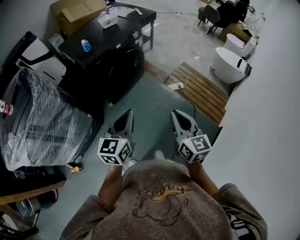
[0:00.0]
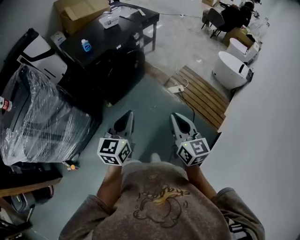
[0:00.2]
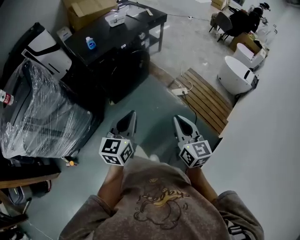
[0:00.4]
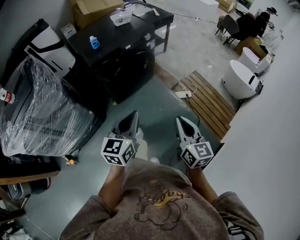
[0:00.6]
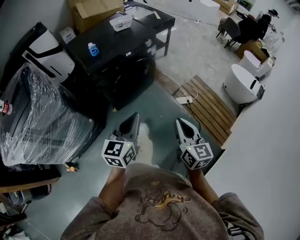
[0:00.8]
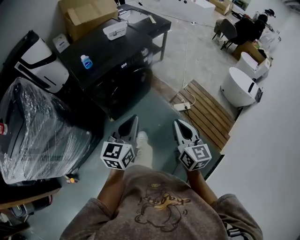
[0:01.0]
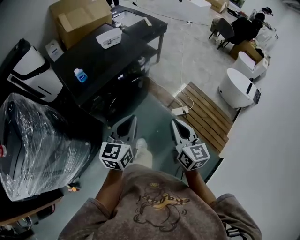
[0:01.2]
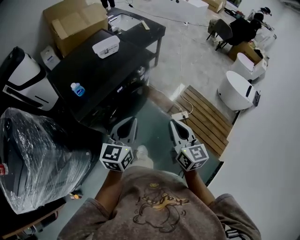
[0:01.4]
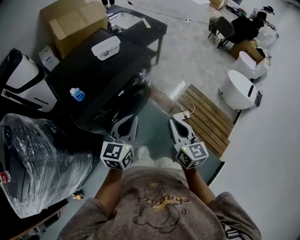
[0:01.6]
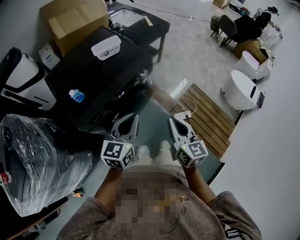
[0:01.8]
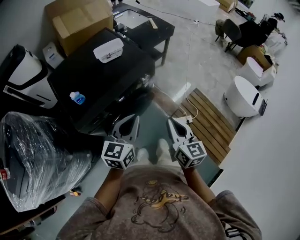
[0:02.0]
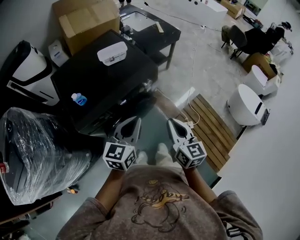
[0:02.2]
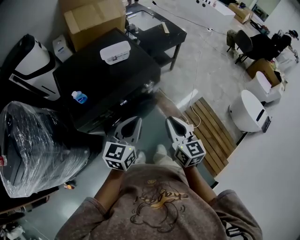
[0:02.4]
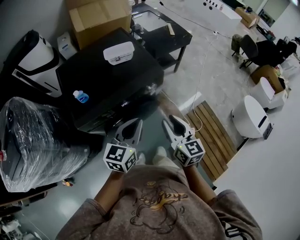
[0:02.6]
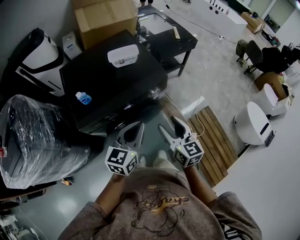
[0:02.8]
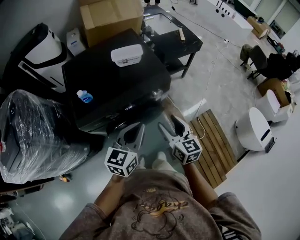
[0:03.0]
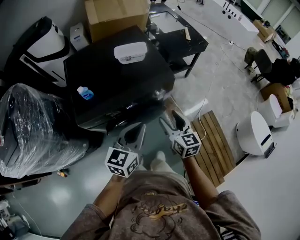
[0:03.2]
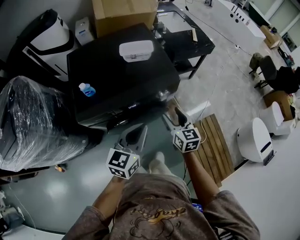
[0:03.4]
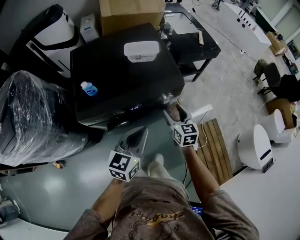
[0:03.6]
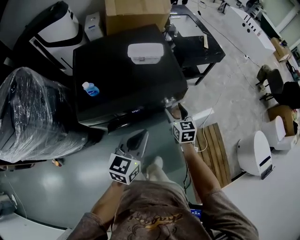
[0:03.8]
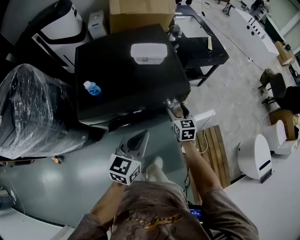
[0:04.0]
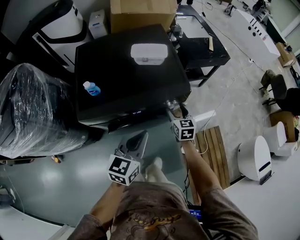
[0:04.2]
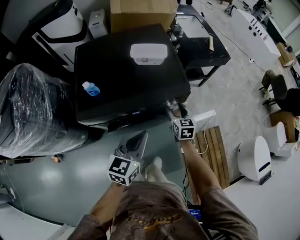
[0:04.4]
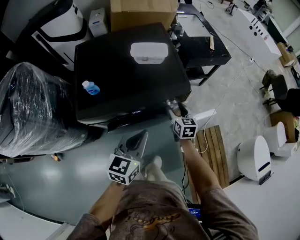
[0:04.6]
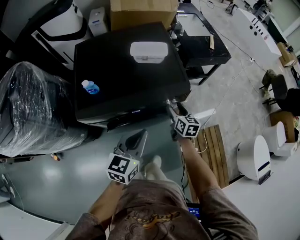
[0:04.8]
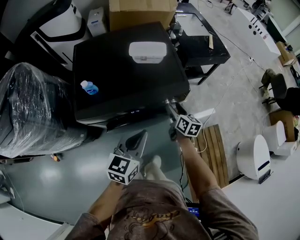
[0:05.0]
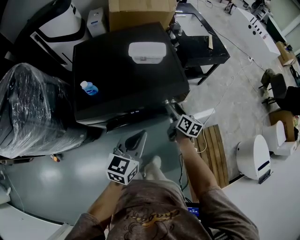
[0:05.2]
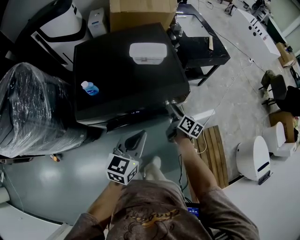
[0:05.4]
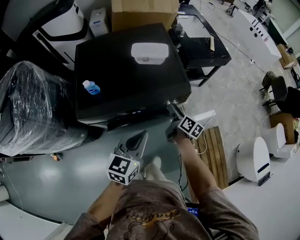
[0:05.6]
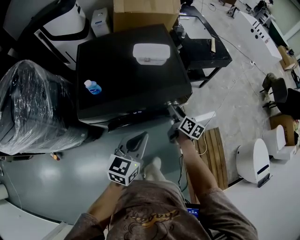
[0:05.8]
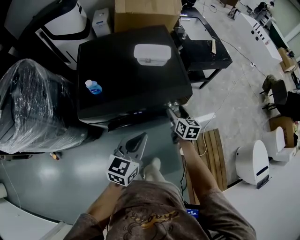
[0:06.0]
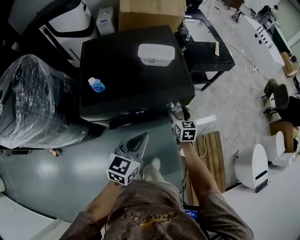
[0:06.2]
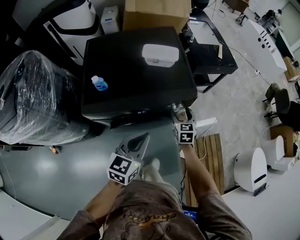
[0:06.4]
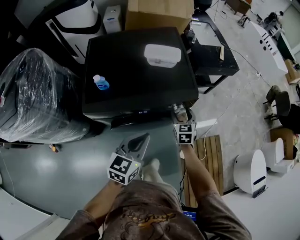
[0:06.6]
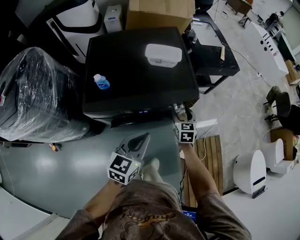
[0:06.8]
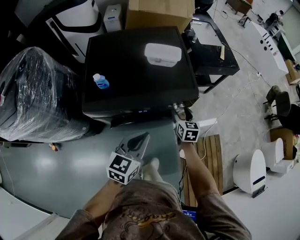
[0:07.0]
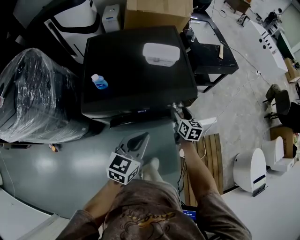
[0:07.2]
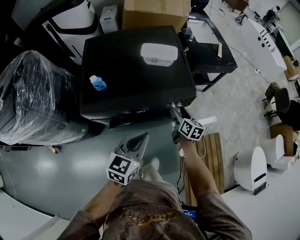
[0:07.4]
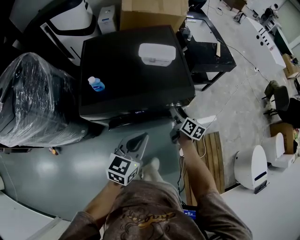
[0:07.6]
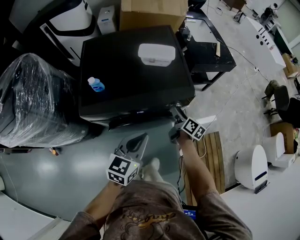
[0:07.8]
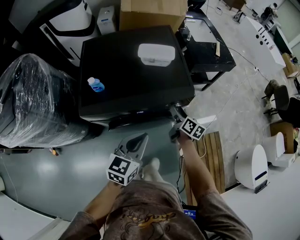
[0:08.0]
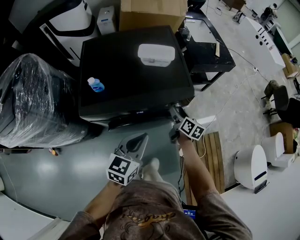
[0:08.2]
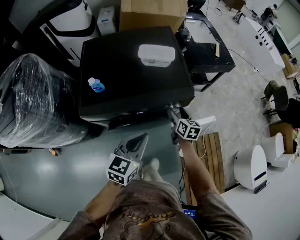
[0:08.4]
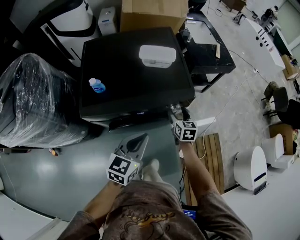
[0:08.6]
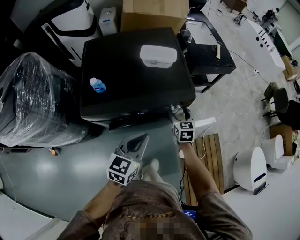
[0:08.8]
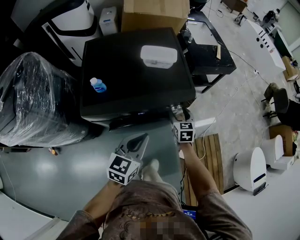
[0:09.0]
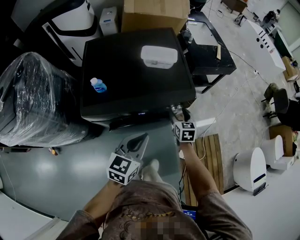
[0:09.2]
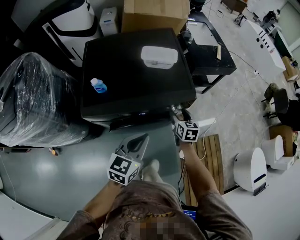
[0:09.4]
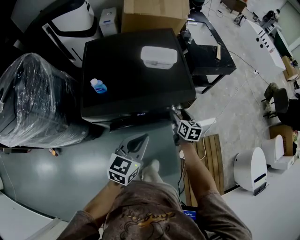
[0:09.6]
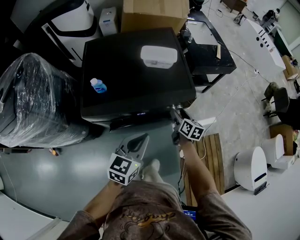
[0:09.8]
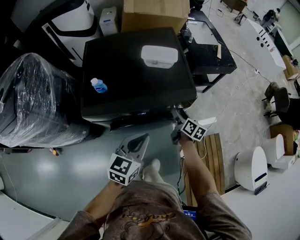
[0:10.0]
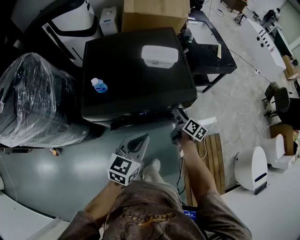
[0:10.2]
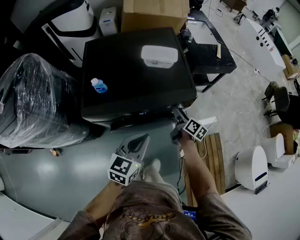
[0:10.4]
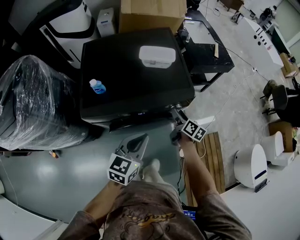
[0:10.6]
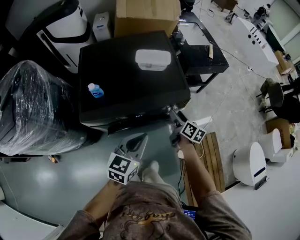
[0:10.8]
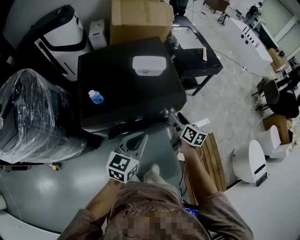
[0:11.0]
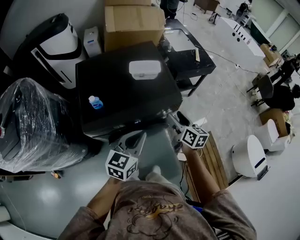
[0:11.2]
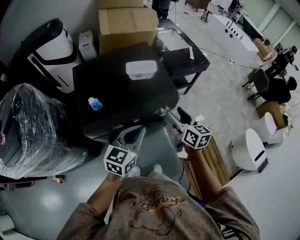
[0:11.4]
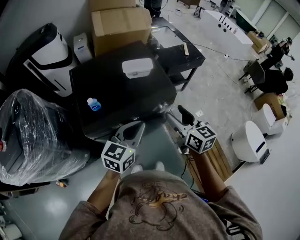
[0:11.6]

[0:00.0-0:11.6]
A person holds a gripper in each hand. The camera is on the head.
0:00.0 to 0:01.4: The two grippers go some 35 cm forward.
0:01.4 to 0:02.8: Both grippers move forward, approximately 15 cm. The right gripper swivels approximately 20 degrees, and opens its fingers.
0:02.8 to 0:04.4: The left gripper heads downward, covering about 5 cm. Meanwhile the right gripper is displaced forward and downward by some 25 cm, and changes its angle by roughly 20 degrees.
0:04.4 to 0:05.8: The right gripper changes its angle by approximately 40 degrees.
0:05.8 to 0:07.2: The right gripper turns by approximately 30 degrees.
0:07.2 to 0:08.8: The right gripper rotates roughly 20 degrees.
0:08.8 to 0:10.2: The right gripper rotates around the line of its fingers by some 50 degrees, clockwise from behind.
0:10.2 to 0:11.6: The left gripper is displaced upward by roughly 10 cm, while the right gripper is displaced upward and backward by approximately 30 cm, and turns by some 40 degrees.

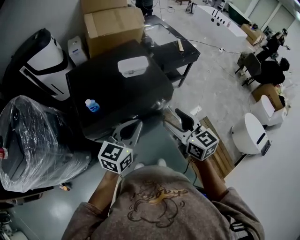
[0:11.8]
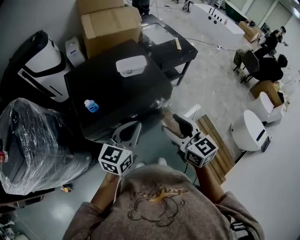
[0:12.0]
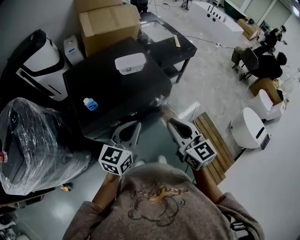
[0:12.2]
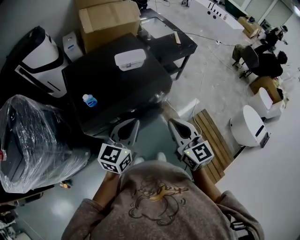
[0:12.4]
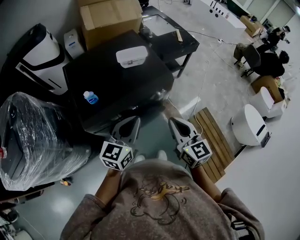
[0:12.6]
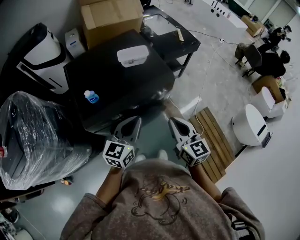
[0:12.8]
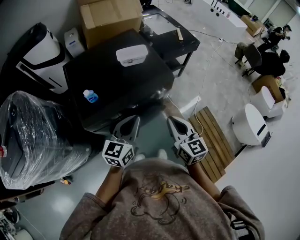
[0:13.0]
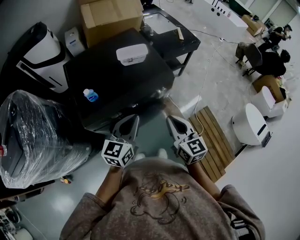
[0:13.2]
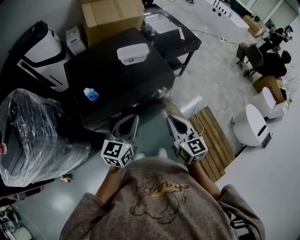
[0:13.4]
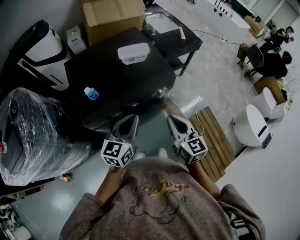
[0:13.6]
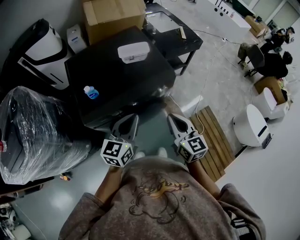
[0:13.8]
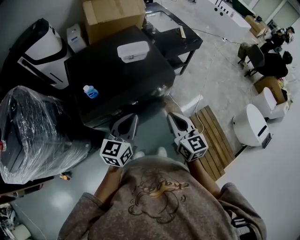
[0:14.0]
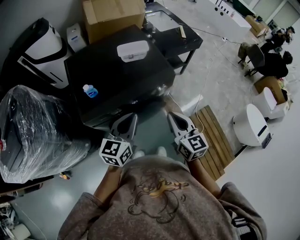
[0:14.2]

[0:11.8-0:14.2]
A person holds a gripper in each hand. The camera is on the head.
0:11.8 to 0:13.0: The right gripper travels downward by approximately 5 cm, and closes its fingers, while the left gripper ends up roughly 5 cm from where it was.
0:13.0 to 0:14.2: The two grippers keep their place.

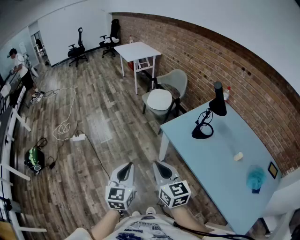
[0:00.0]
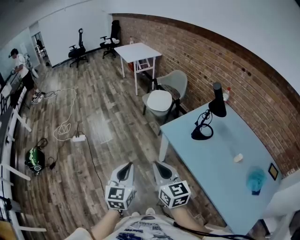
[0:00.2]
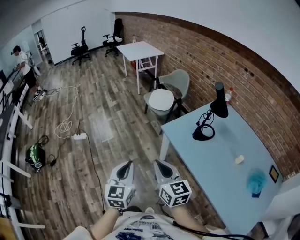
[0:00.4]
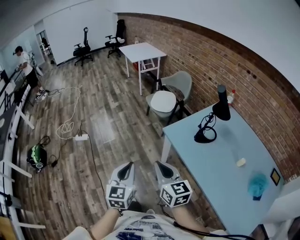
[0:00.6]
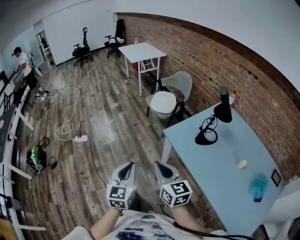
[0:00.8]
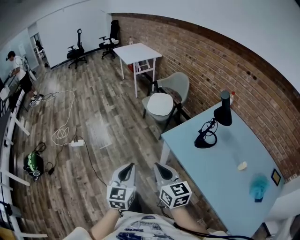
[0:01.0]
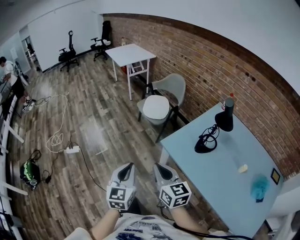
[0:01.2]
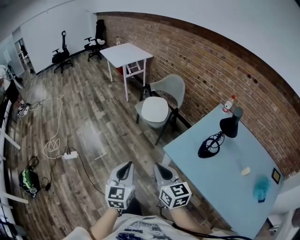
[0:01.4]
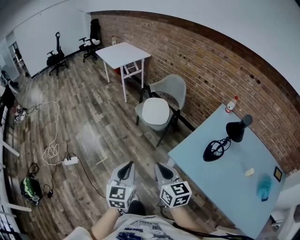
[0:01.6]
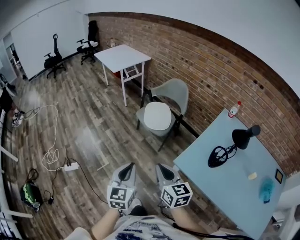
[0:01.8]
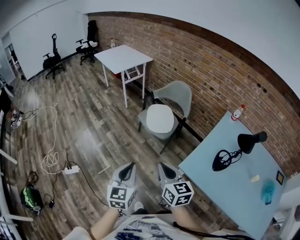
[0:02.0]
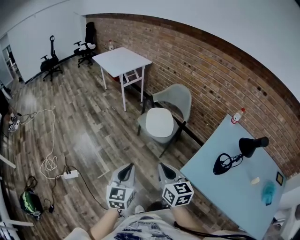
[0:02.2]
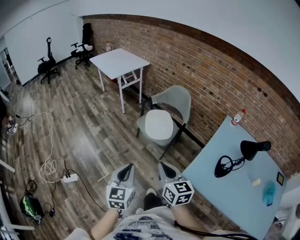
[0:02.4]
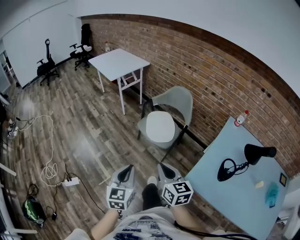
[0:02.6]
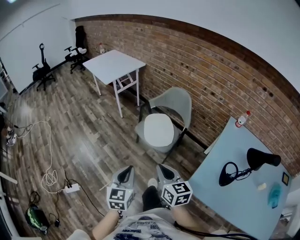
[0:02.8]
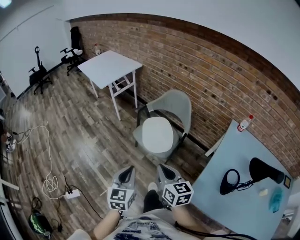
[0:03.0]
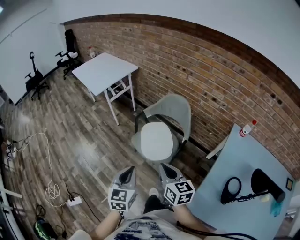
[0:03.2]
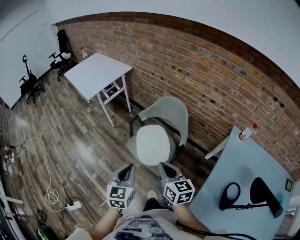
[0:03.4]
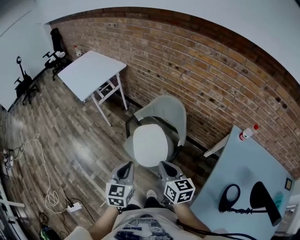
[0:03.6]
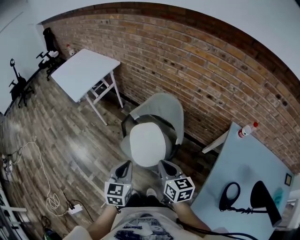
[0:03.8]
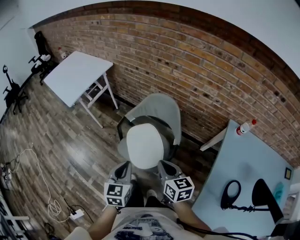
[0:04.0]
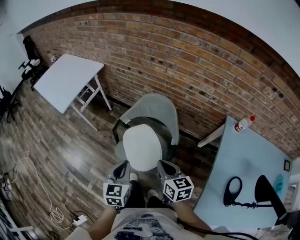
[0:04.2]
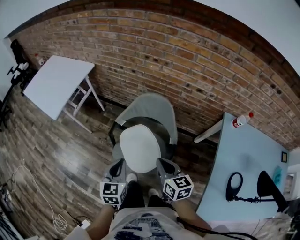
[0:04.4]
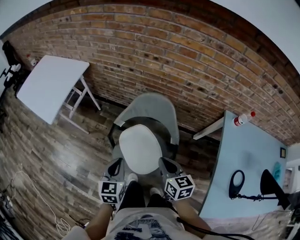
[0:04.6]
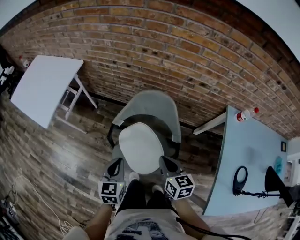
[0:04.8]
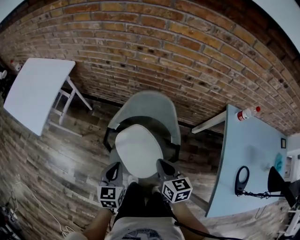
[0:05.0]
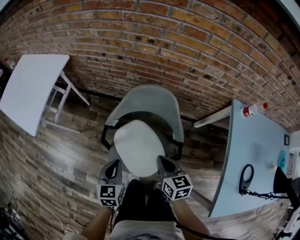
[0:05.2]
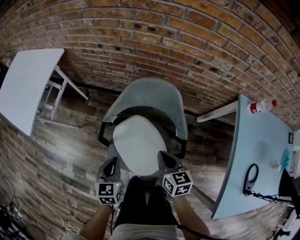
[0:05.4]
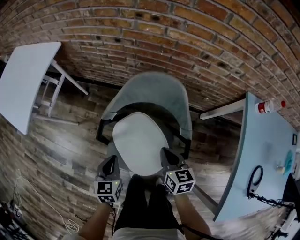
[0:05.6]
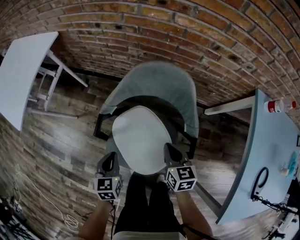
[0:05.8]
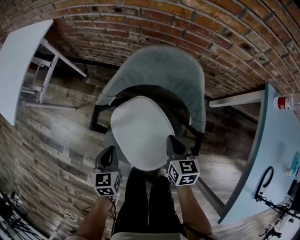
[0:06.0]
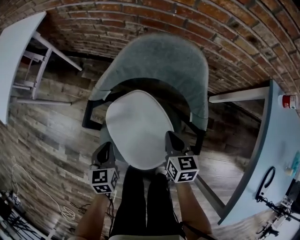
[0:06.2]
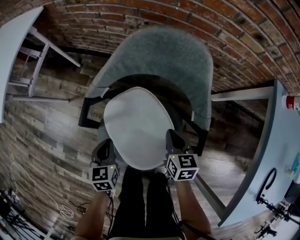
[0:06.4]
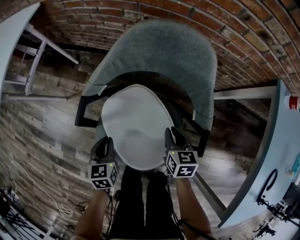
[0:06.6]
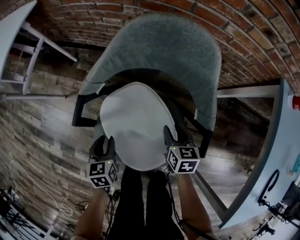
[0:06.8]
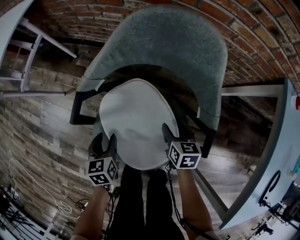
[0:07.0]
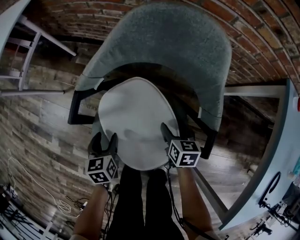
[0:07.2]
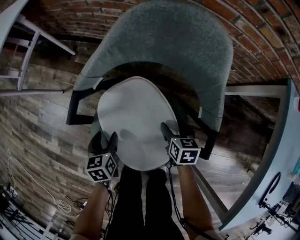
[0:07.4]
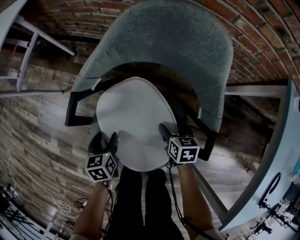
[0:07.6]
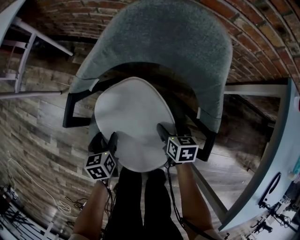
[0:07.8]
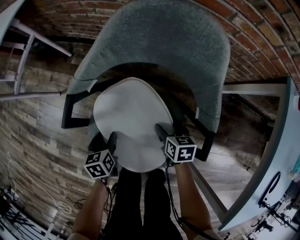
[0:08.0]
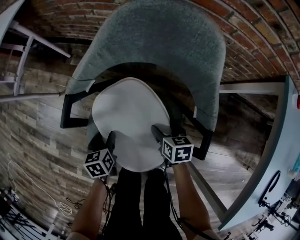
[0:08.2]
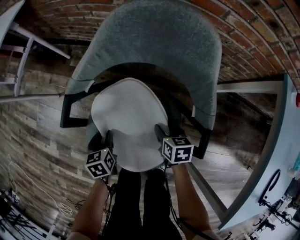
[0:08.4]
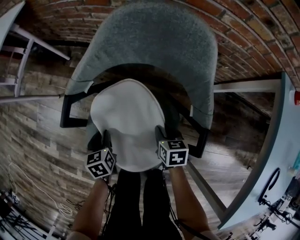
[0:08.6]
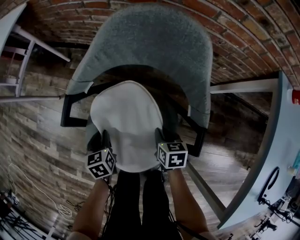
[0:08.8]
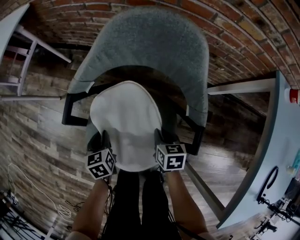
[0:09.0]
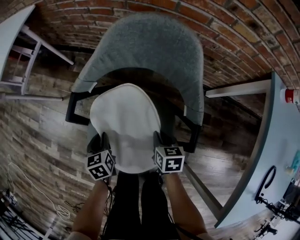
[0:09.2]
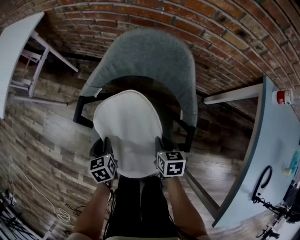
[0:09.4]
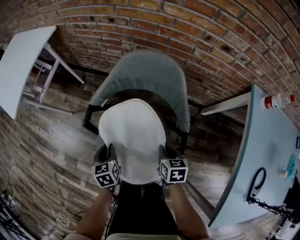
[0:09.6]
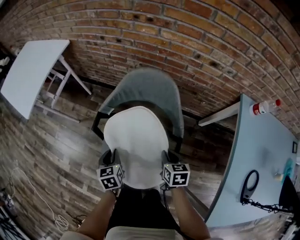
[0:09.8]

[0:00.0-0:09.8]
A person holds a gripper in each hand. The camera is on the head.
0:00.0 to 0:01.4: Both grippers travel together forward, about 25 cm.
0:01.4 to 0:02.8: The grippers both shift forward by approximately 30 cm.
0:02.8 to 0:04.2: Both grippers travel together forward, approximately 40 cm.
0:04.2 to 0:05.6: The two grippers go some 30 cm downward and forward.
0:05.6 to 0:07.0: The grippers both shift downward by approximately 25 cm. The left gripper opens its fingers, while the right gripper opens its fingers.
0:07.0 to 0:08.4: The left gripper shifts by about 5 cm. The right gripper moves roughly 5 cm.
0:08.4 to 0:09.8: The two grippers go about 25 cm upward. The right gripper closes its fingers. The left gripper closes.
